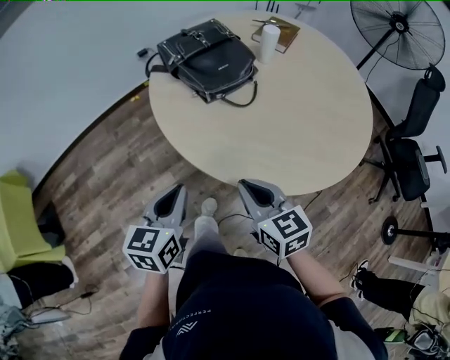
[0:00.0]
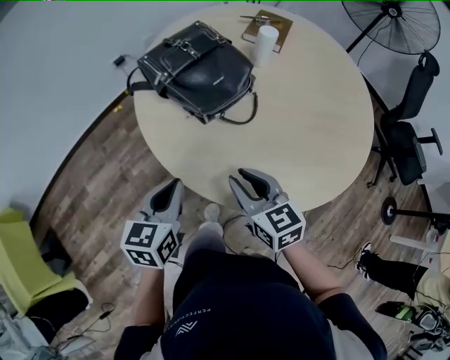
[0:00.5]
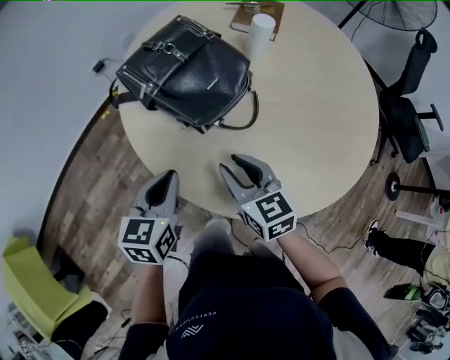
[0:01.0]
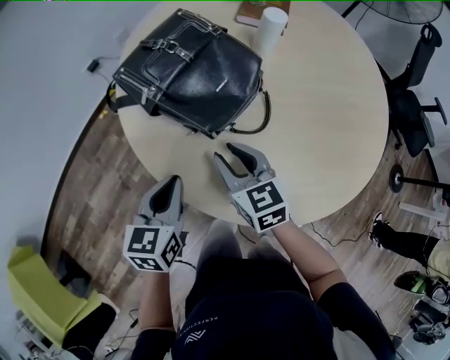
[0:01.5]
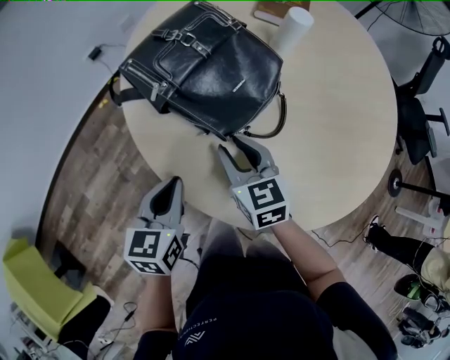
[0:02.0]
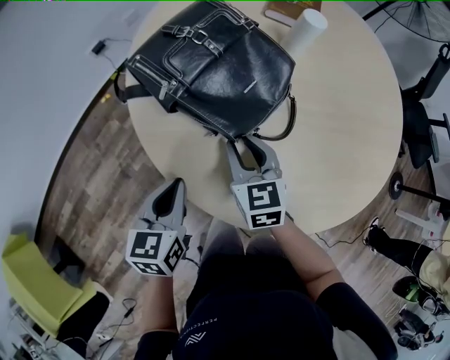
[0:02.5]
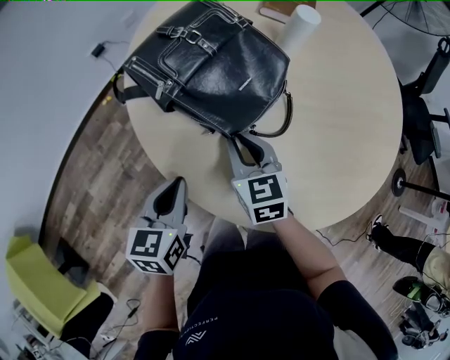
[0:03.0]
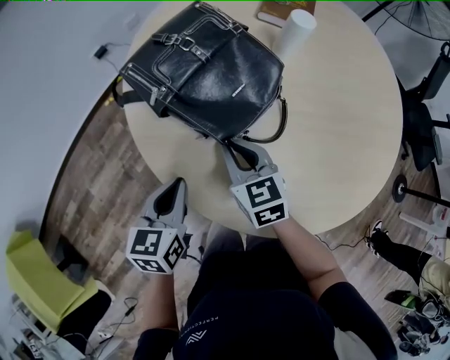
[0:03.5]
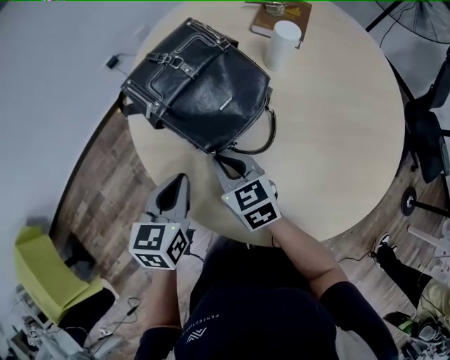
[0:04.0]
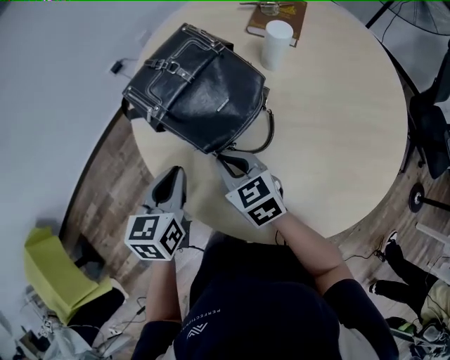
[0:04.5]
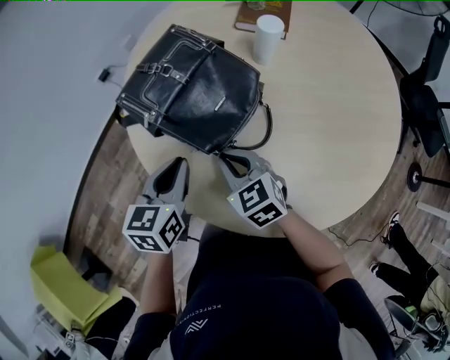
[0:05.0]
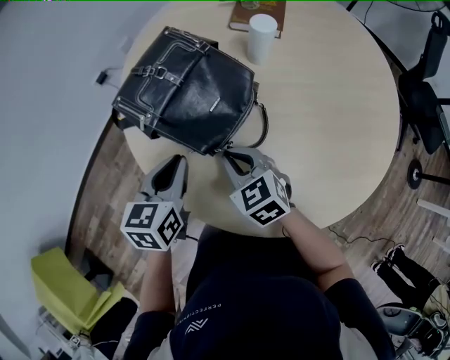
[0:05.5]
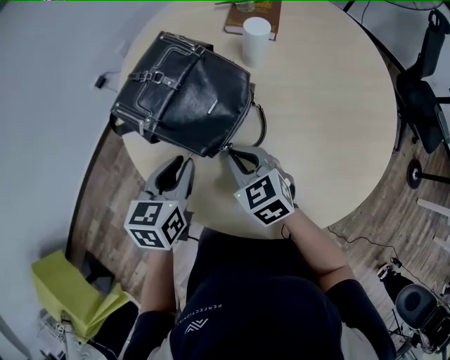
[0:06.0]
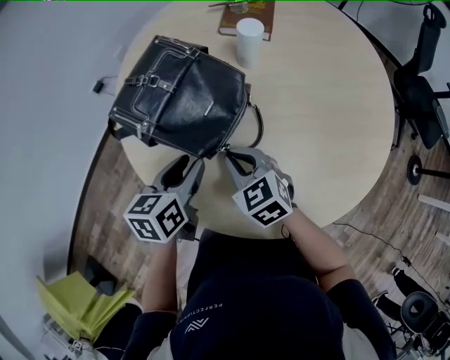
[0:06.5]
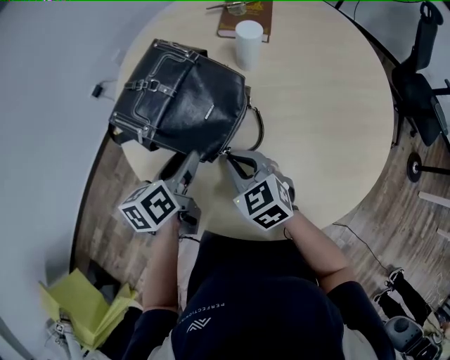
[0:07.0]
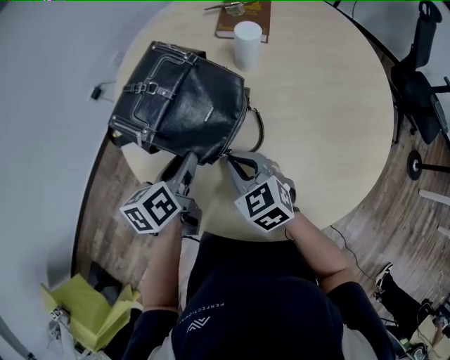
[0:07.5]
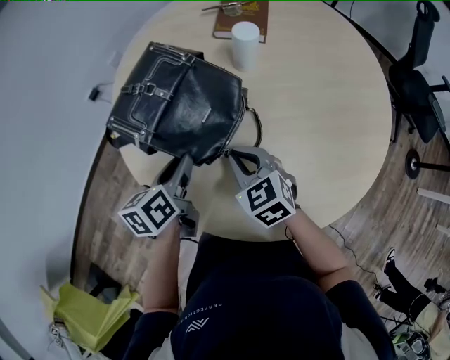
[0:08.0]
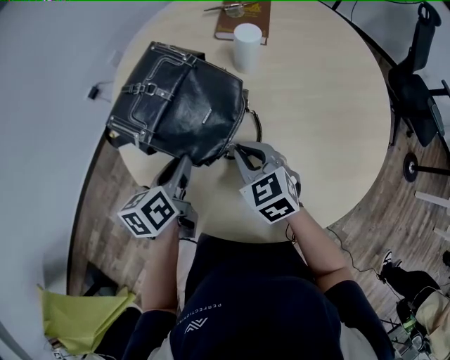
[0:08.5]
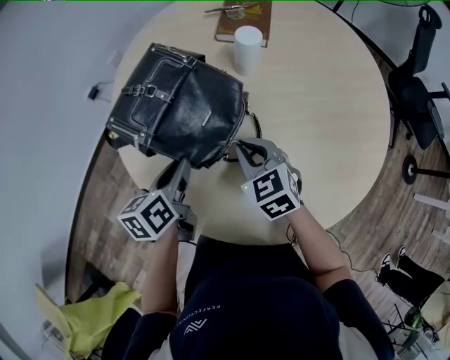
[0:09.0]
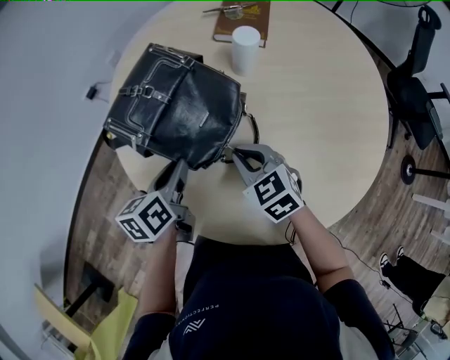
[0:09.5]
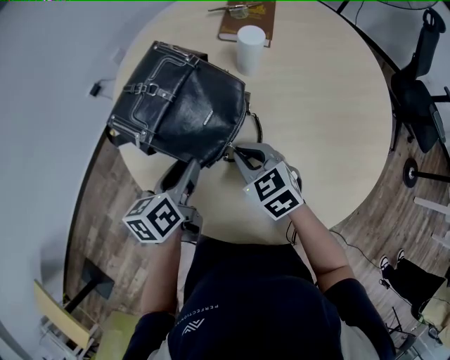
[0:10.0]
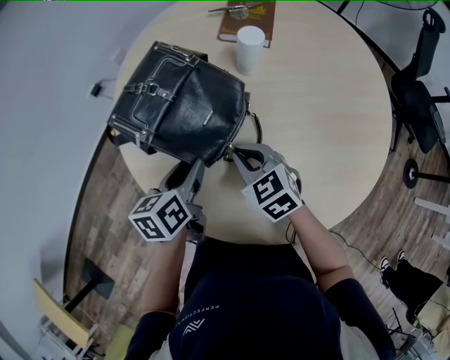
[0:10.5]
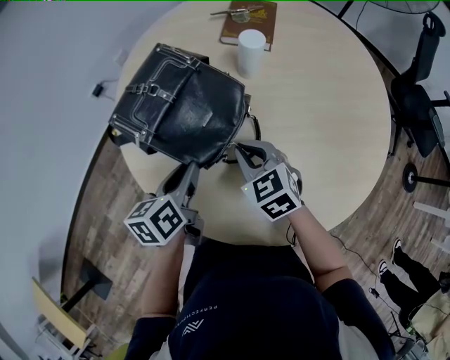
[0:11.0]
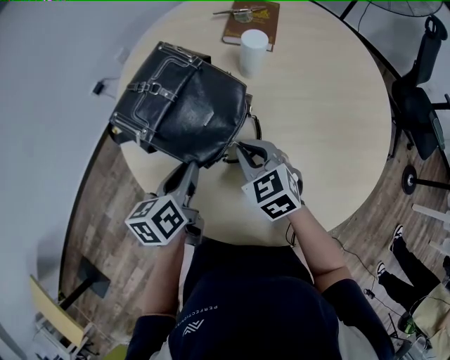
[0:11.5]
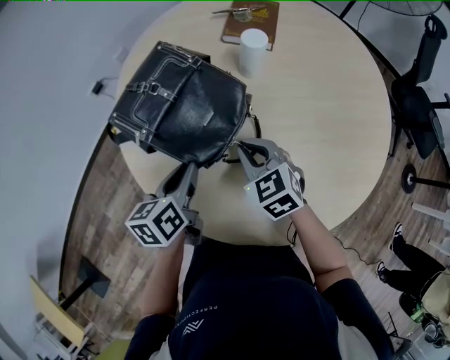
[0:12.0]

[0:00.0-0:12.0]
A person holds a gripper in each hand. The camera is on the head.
0:00.0 to 0:02.0: Both grippers travel together forward, some 25 cm. The right gripper opens its fingers.
0:02.0 to 0:04.0: The left gripper moves approximately 5 cm; the right gripper closes.
0:04.0 to 0:06.0: The right gripper is displaced to the right by approximately 5 cm. Meanwhile the left gripper changes place by roughly 5 cm.
0:06.0 to 0:08.0: The left gripper turns by roughly 20 degrees, and opens, then closes once more.
0:08.0 to 0:10.0: There are only small adjustments of the grippers.
0:10.0 to 0:12.0: The left gripper closes up.

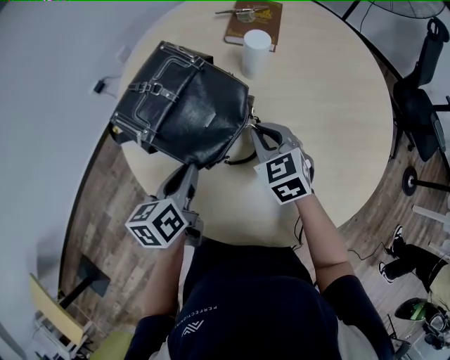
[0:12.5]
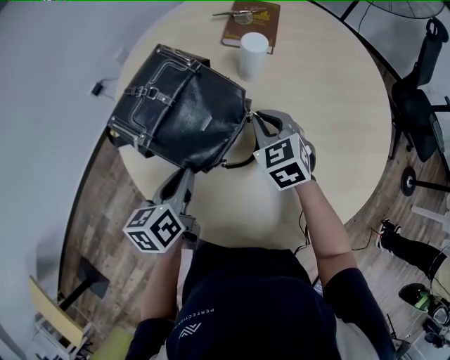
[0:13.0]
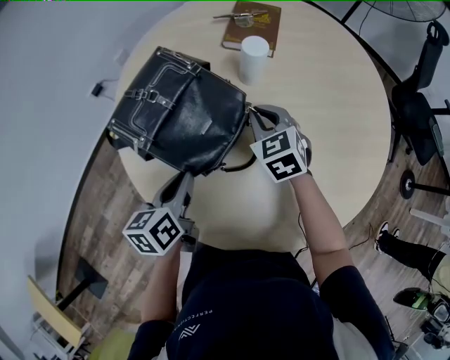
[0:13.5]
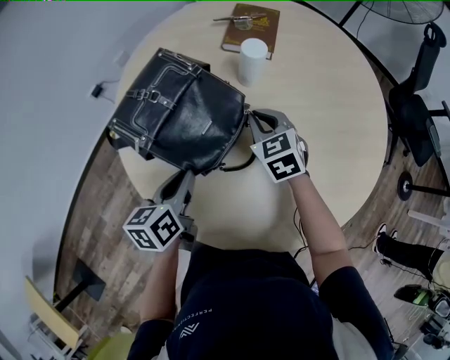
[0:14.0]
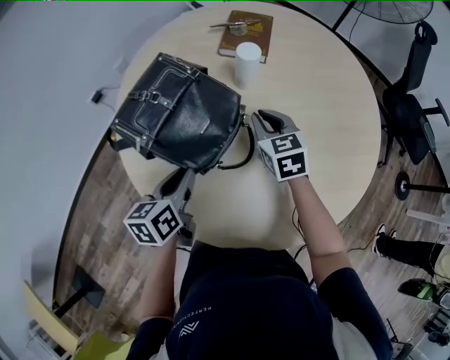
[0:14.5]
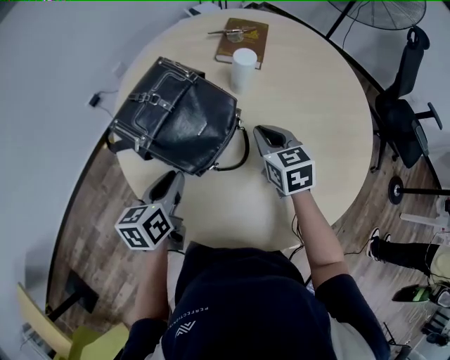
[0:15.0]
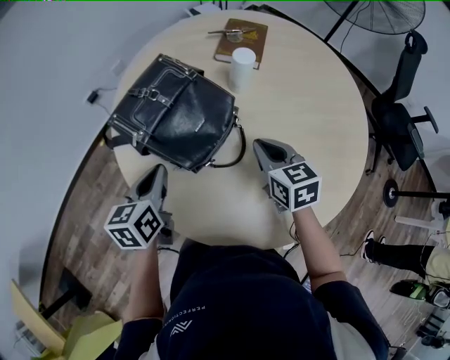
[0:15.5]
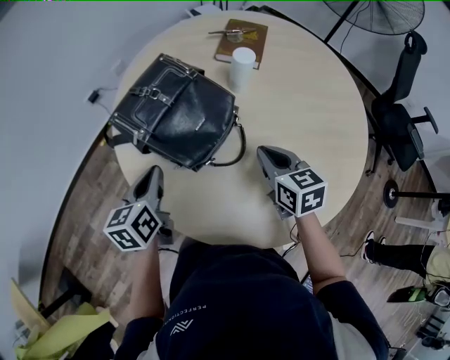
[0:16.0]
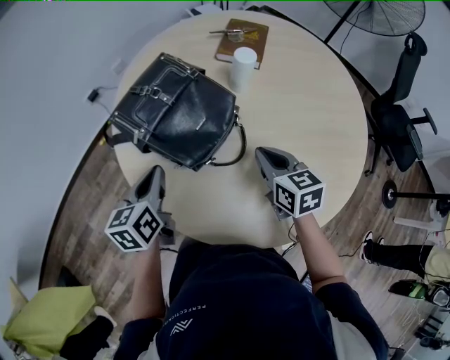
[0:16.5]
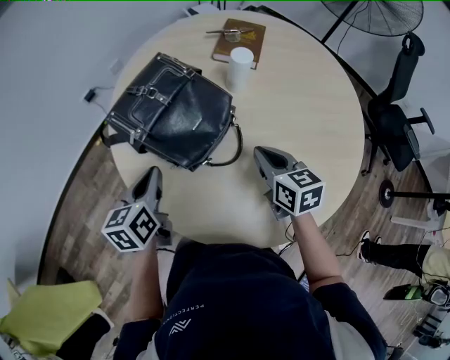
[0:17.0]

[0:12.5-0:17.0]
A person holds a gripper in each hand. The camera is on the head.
0:12.5 to 0:14.5: The right gripper goes approximately 5 cm forward.
0:14.5 to 0:17.0: The right gripper shifts about 10 cm backward, while the left gripper moves to the left, about 5 cm.

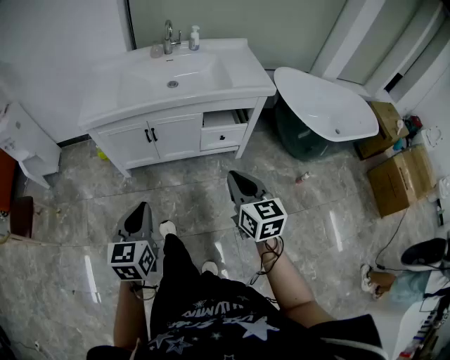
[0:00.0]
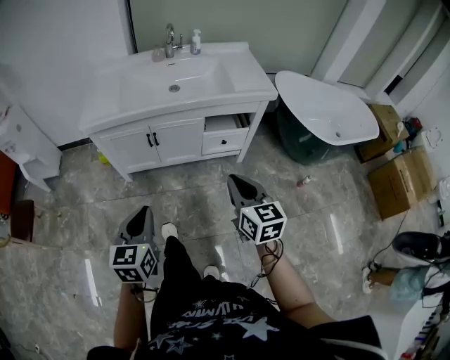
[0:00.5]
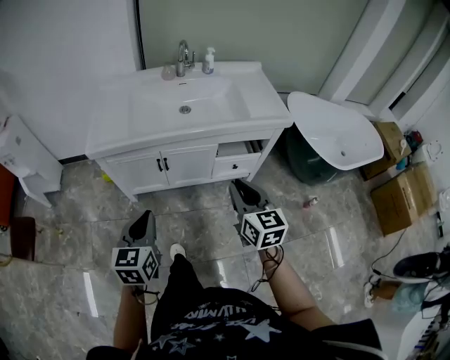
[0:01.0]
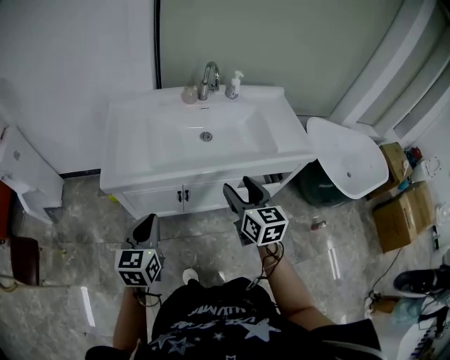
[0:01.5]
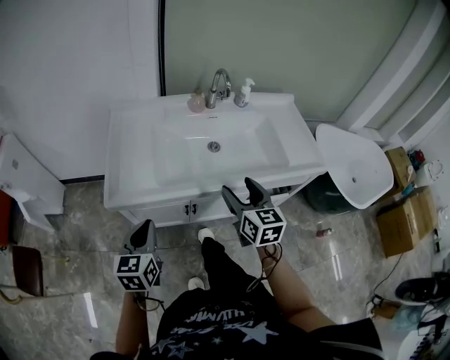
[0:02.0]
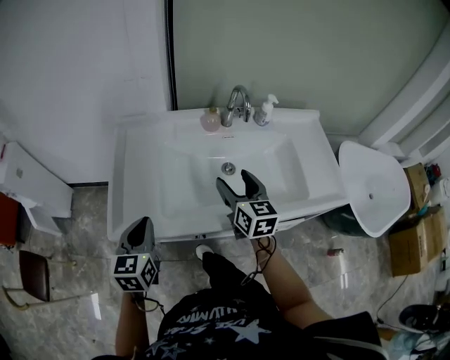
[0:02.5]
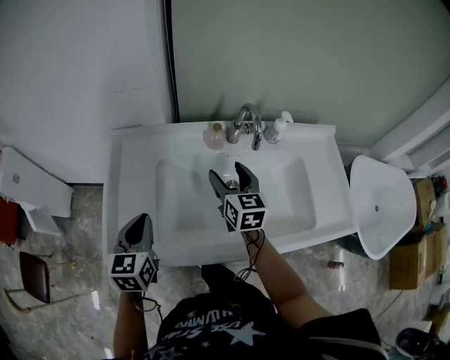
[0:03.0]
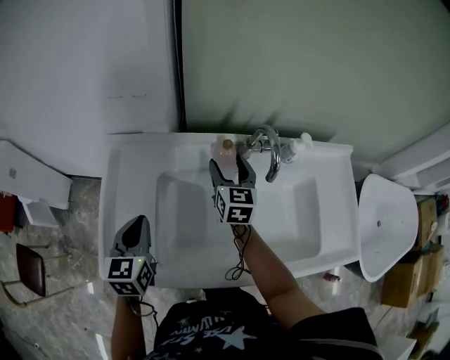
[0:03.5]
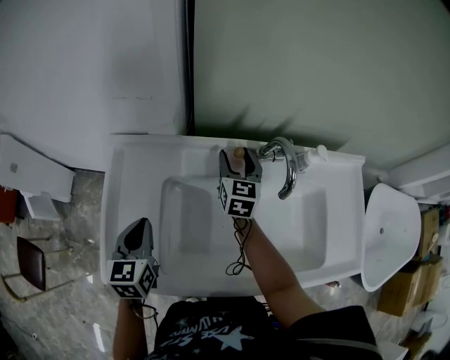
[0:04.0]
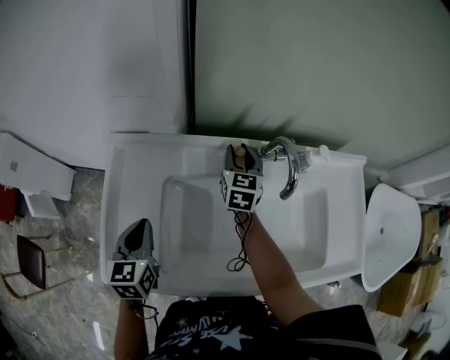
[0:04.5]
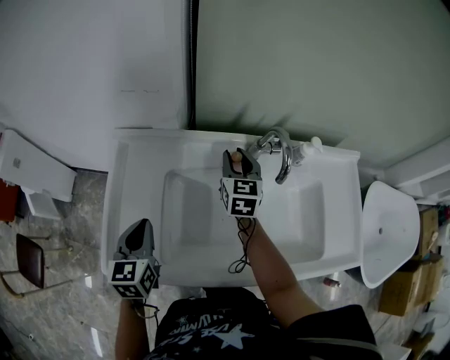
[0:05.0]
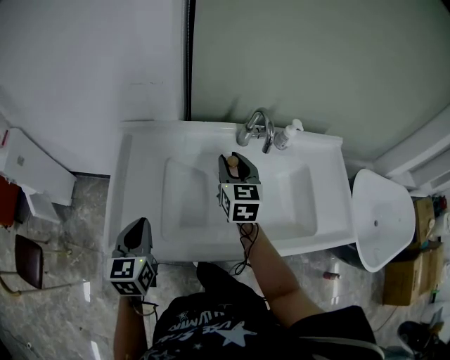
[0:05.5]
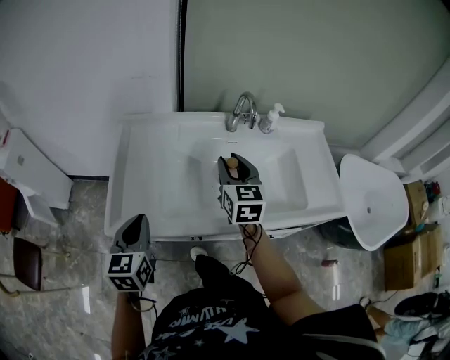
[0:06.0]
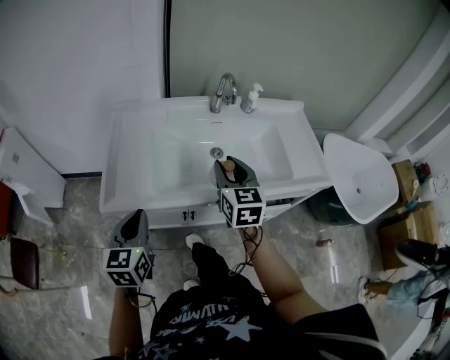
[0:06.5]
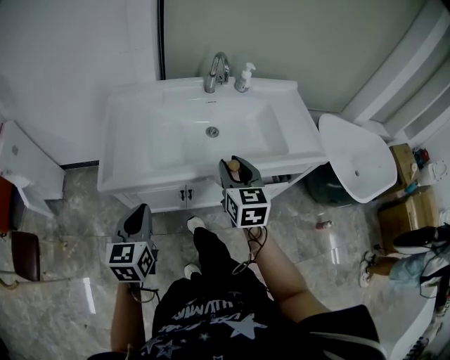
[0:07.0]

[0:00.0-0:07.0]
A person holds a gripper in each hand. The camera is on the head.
0:00.0 to 0:02.0: Both grippers are carried forward and to the left, about 40 cm. The right gripper opens up.
0:02.0 to 0:03.5: Both grippers move forward, about 40 cm.
0:03.5 to 0:05.0: The right gripper closes its fingers.
0:05.0 to 0:07.0: Both grippers travel together backward, roughly 35 cm.

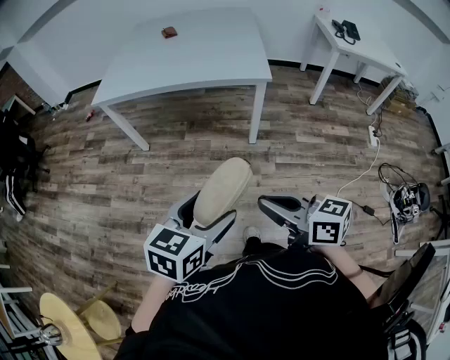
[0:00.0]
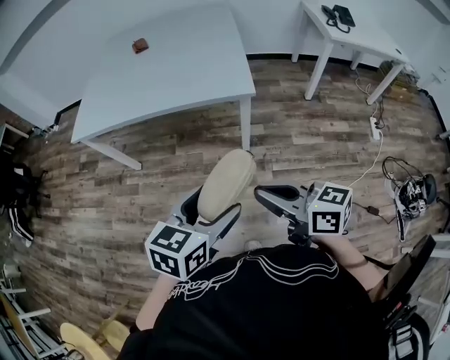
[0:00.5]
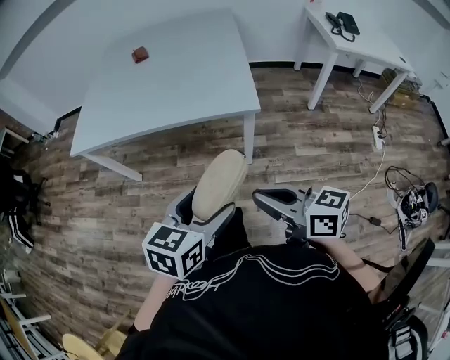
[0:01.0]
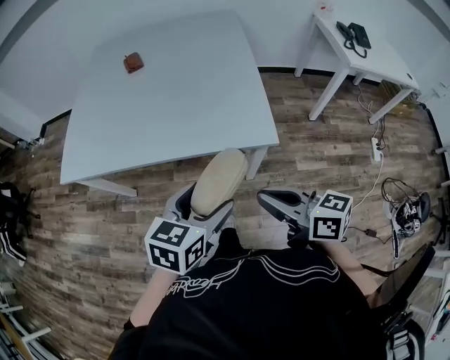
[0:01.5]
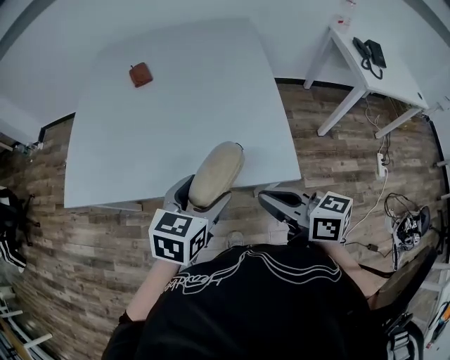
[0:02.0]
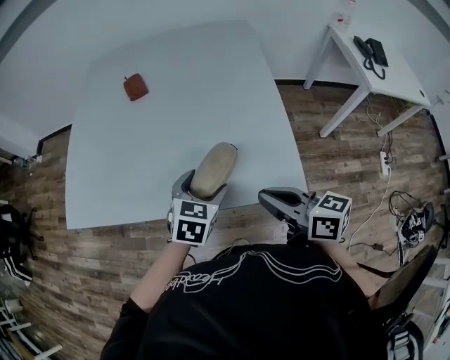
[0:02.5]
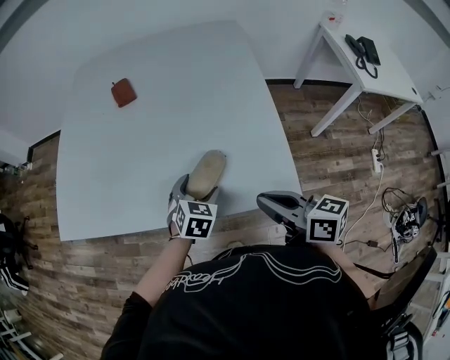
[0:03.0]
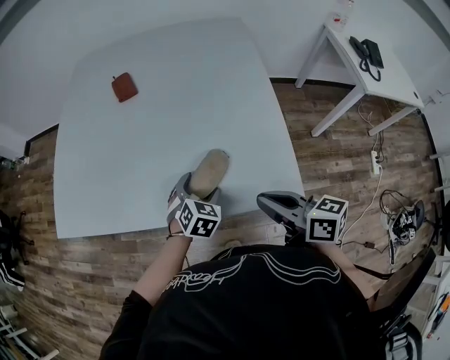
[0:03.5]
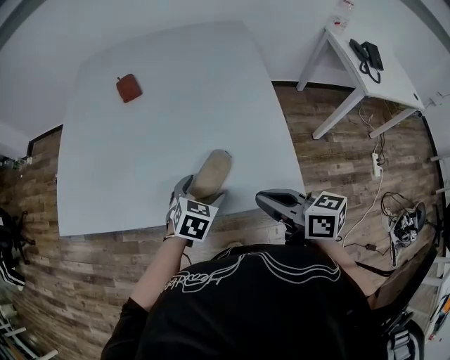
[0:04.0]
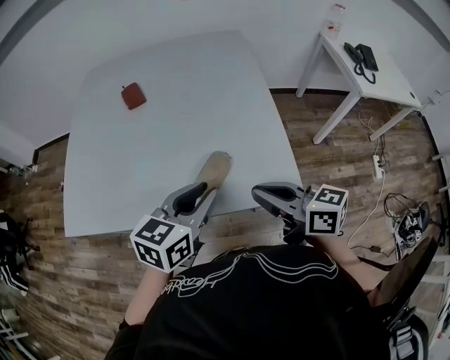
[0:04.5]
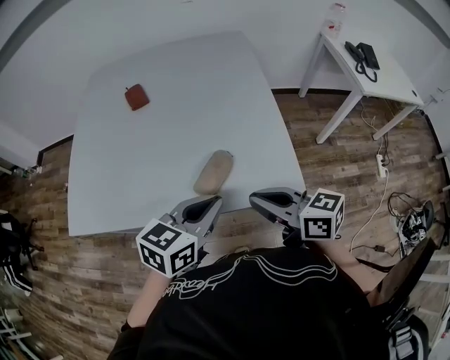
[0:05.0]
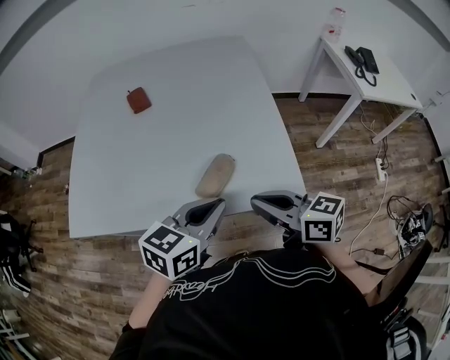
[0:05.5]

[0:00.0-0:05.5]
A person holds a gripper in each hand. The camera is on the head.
0:00.0 to 0:02.0: The pair of grippers is taken forward, about 60 cm.
0:02.0 to 0:03.5: The right gripper moves forward, approximately 10 cm. Meanwhile the left gripper travels downward and forward by some 20 cm, and rotates some 30 degrees.
0:03.5 to 0:05.5: The right gripper moves about 5 cm, while the left gripper travels upward and backward by some 25 cm, turns by some 40 degrees, and closes.
